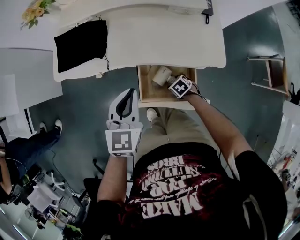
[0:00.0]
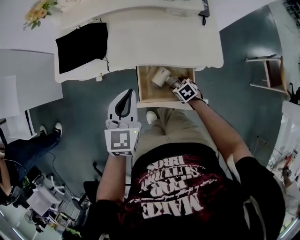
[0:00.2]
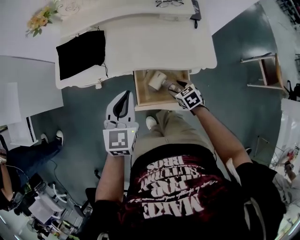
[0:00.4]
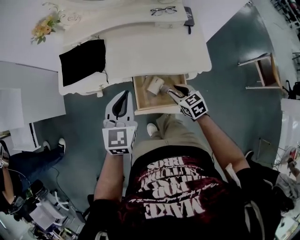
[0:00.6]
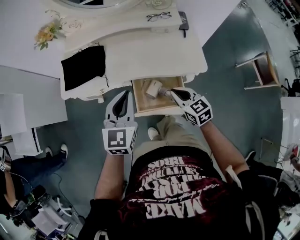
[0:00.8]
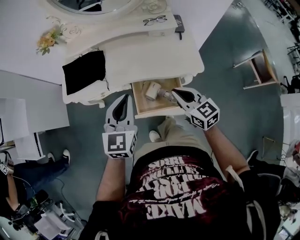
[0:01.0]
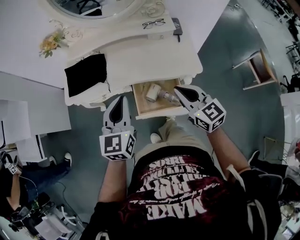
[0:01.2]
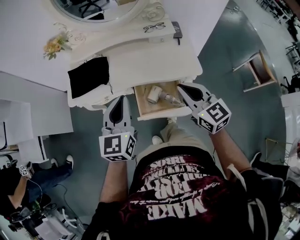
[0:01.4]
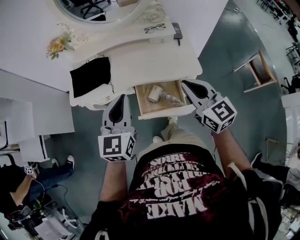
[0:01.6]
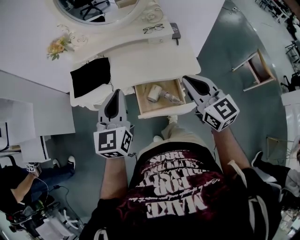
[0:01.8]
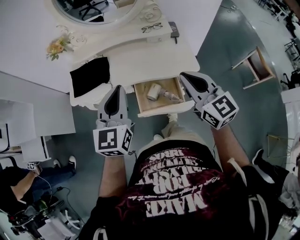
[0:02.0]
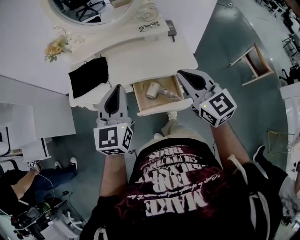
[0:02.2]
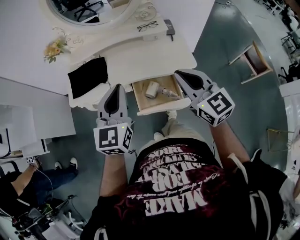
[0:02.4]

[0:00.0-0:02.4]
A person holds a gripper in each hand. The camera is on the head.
0:00.0 to 0:01.2: The right gripper goes about 40 cm upward, tips its fingers upward by roughly 60 degrees, and closes up; the left gripper is displaced upward by approximately 10 cm.
0:01.2 to 0:02.4: The two grippers go roughly 10 cm upward.

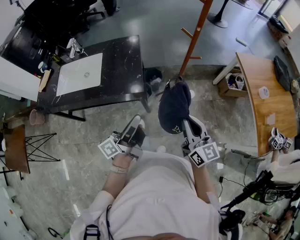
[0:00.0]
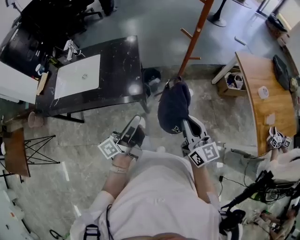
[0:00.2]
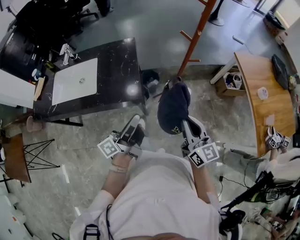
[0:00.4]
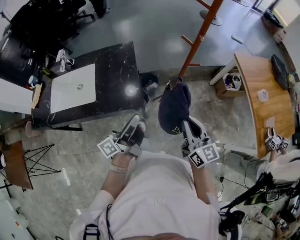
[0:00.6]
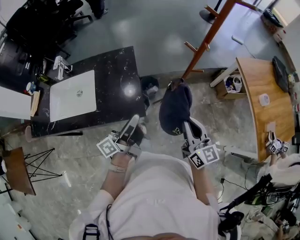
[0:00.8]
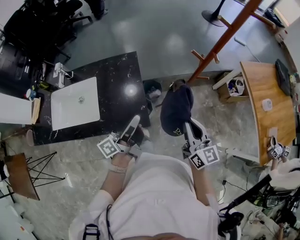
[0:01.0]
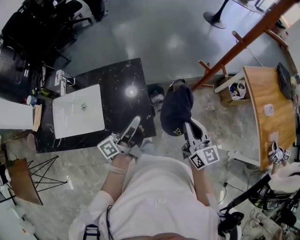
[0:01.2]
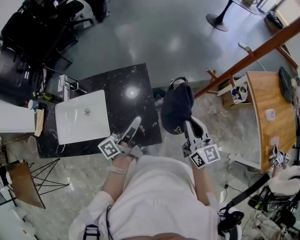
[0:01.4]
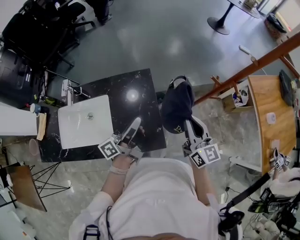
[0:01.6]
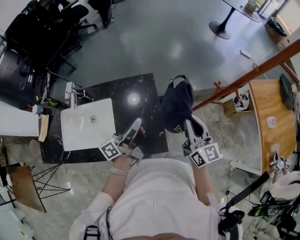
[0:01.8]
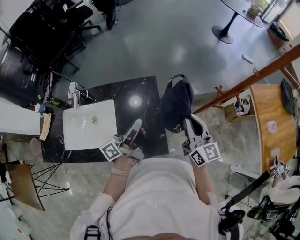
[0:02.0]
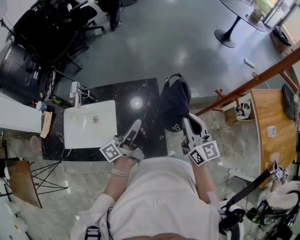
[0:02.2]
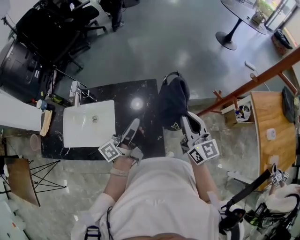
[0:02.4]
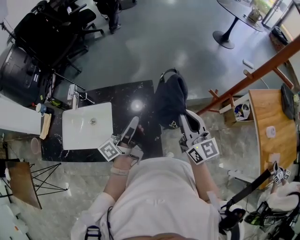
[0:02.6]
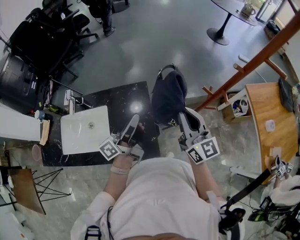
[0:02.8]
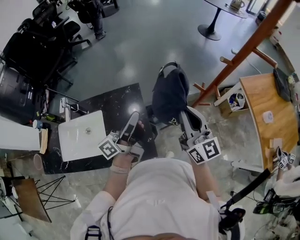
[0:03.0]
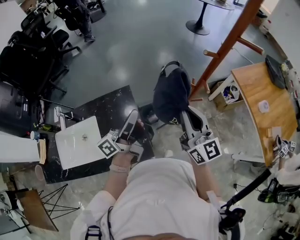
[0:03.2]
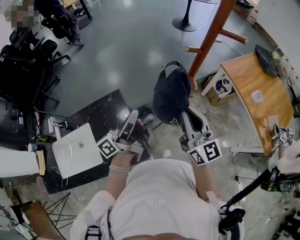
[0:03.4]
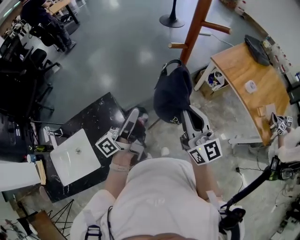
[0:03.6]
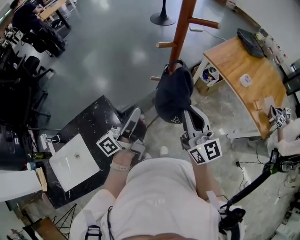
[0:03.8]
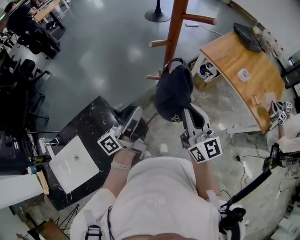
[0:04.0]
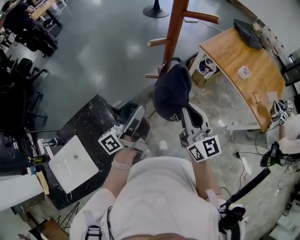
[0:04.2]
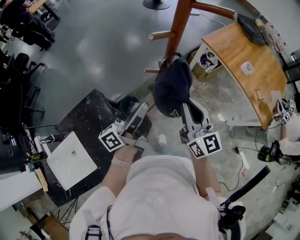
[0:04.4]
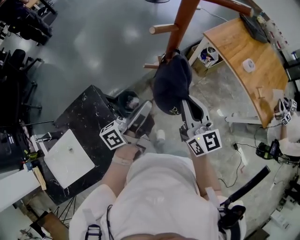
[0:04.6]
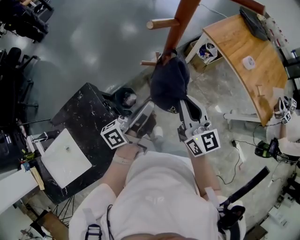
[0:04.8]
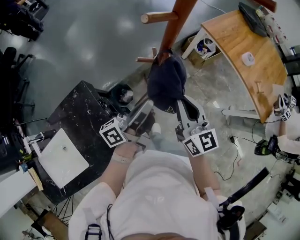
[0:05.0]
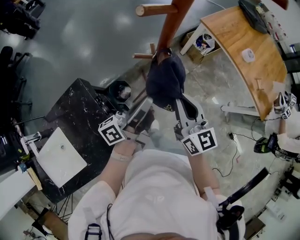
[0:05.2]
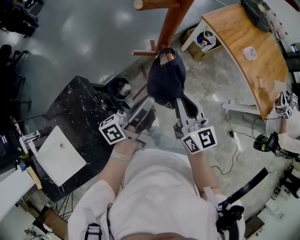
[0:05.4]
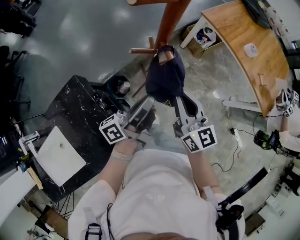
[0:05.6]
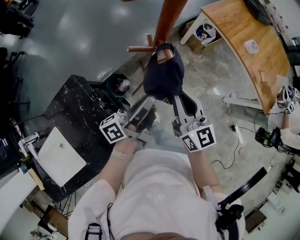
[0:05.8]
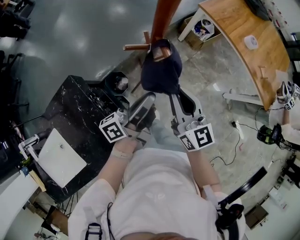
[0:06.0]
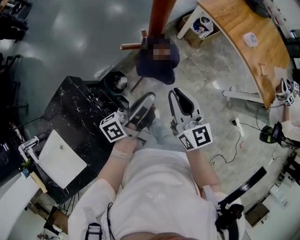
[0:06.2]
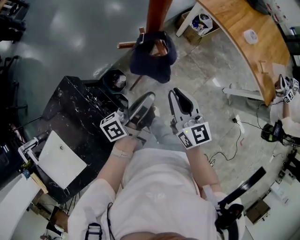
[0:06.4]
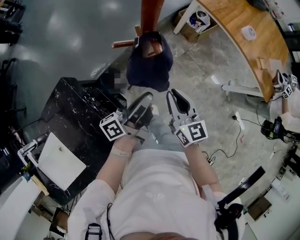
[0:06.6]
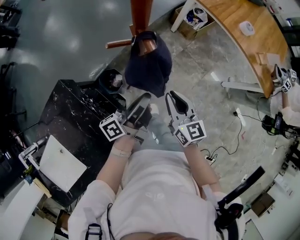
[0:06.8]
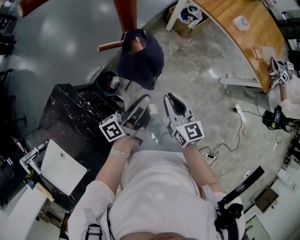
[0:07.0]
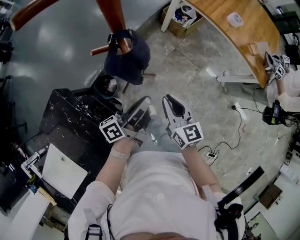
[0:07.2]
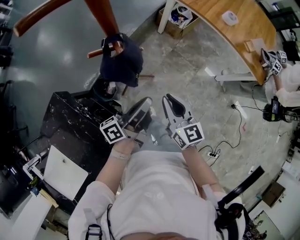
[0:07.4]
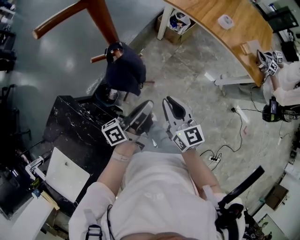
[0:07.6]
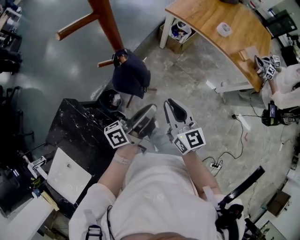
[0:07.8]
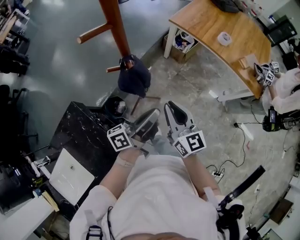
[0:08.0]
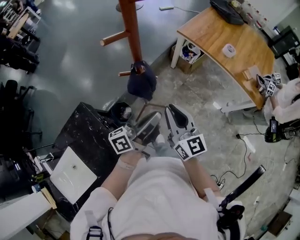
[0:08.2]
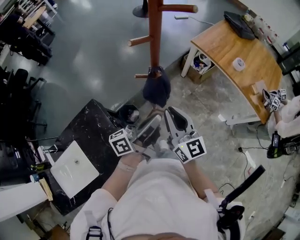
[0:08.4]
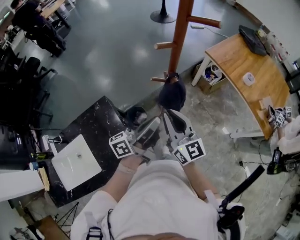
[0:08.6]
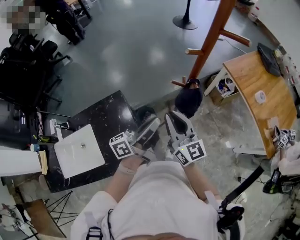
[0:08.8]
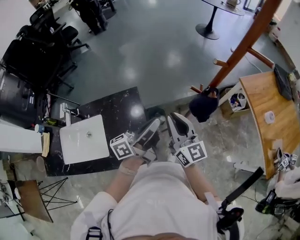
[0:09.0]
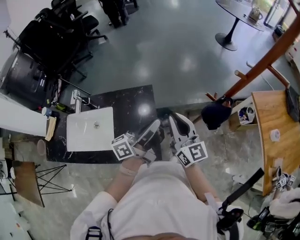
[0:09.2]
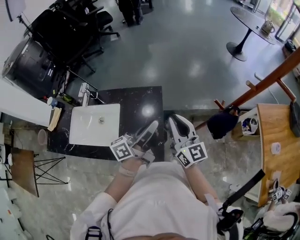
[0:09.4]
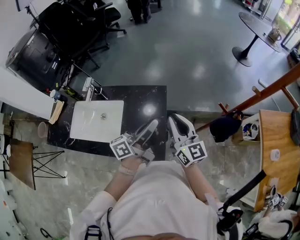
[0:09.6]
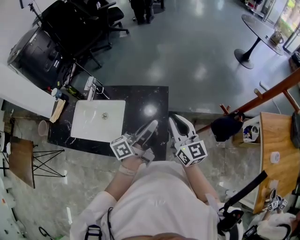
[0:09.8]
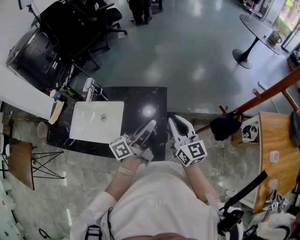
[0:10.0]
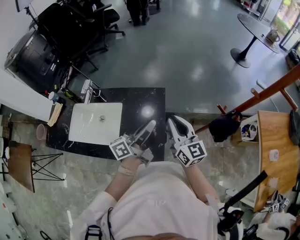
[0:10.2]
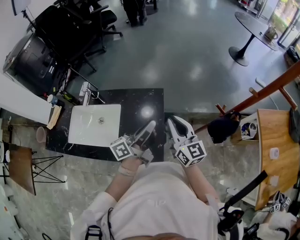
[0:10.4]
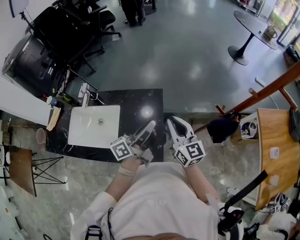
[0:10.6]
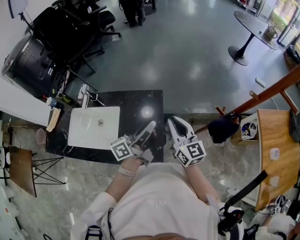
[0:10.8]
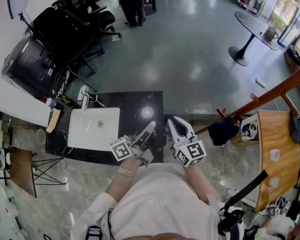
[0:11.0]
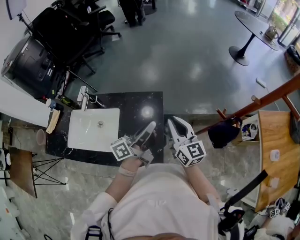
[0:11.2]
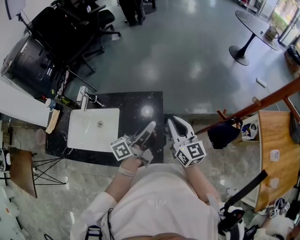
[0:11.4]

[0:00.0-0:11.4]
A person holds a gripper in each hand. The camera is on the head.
0:00.0 to 0:01.4: Both grippers move forward and to the left, approximately 35 cm.
0:01.4 to 0:02.8: The two grippers go roughly 10 cm upward and forward.
0:02.8 to 0:04.2: The left gripper shifts by approximately 25 cm, and turns by some 30 degrees. Meanwhile the right gripper moves some 20 cm, and rotates some 30 degrees.
0:04.2 to 0:05.6: The right gripper moves downward, about 15 cm; the left gripper shifts roughly 15 cm downward and to the right.
0:05.6 to 0:07.2: The two grippers go some 15 cm downward and to the right.
0:07.2 to 0:08.6: The left gripper is displaced upward by roughly 20 cm, and turns by approximately 20 degrees; the right gripper shifts some 25 cm upward and to the left, and turns by some 30 degrees.
0:08.6 to 0:10.0: The left gripper ends up approximately 25 cm from where it was, and turns by some 40 degrees, while the right gripper ends up roughly 25 cm from where it was, and rotates some 40 degrees.
0:10.0 to 0:11.4: The left gripper heads forward, covering approximately 5 cm.

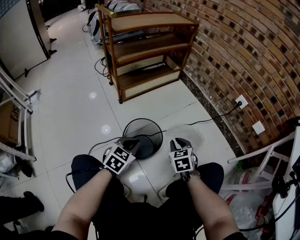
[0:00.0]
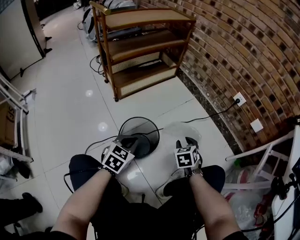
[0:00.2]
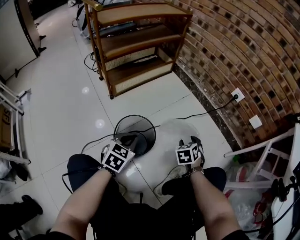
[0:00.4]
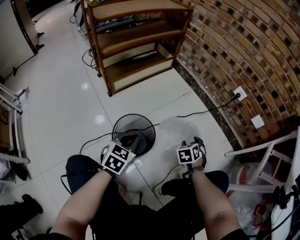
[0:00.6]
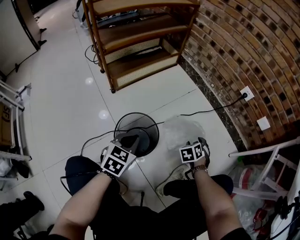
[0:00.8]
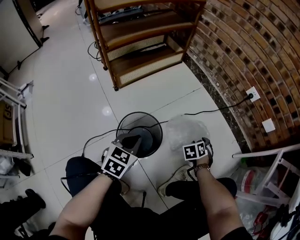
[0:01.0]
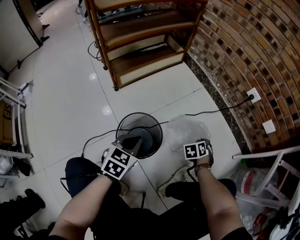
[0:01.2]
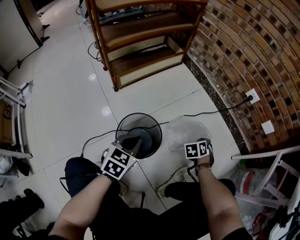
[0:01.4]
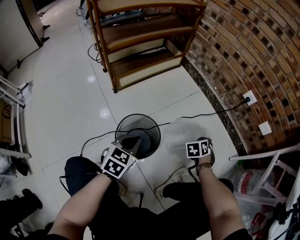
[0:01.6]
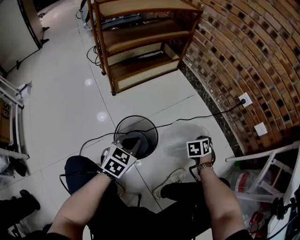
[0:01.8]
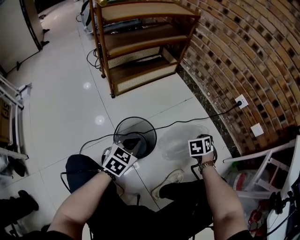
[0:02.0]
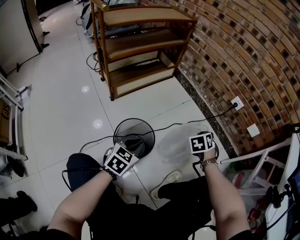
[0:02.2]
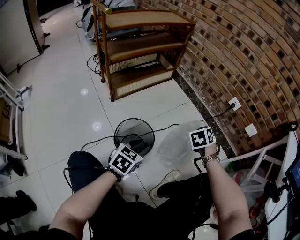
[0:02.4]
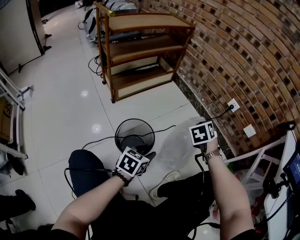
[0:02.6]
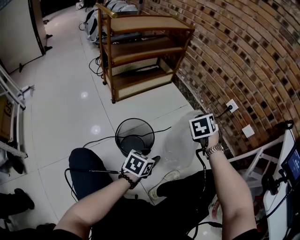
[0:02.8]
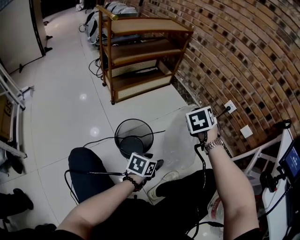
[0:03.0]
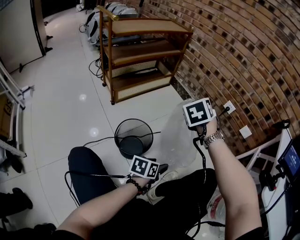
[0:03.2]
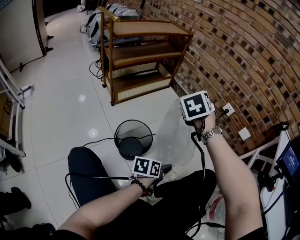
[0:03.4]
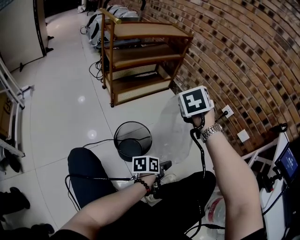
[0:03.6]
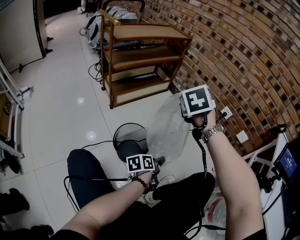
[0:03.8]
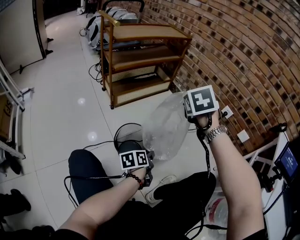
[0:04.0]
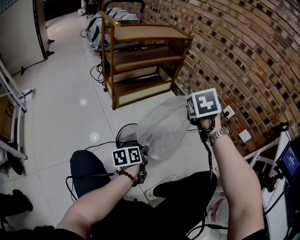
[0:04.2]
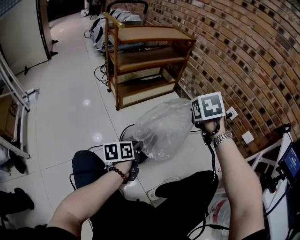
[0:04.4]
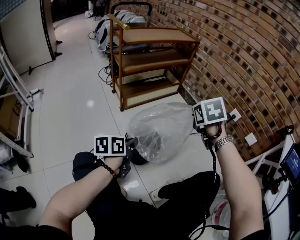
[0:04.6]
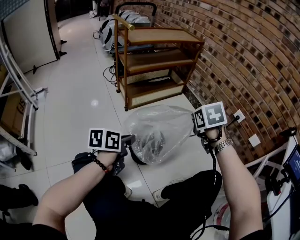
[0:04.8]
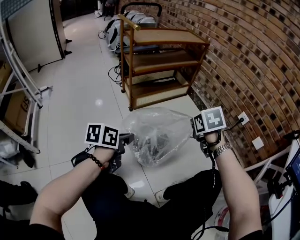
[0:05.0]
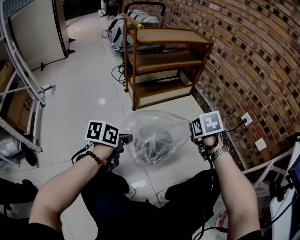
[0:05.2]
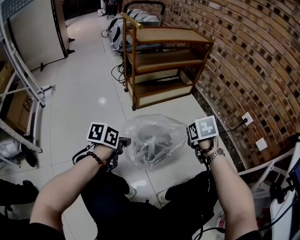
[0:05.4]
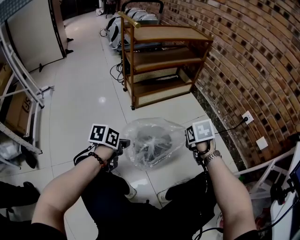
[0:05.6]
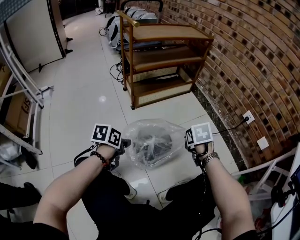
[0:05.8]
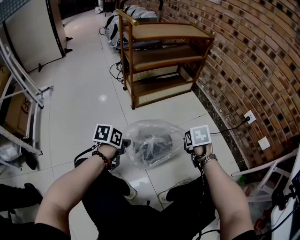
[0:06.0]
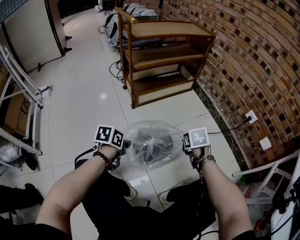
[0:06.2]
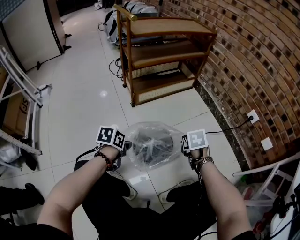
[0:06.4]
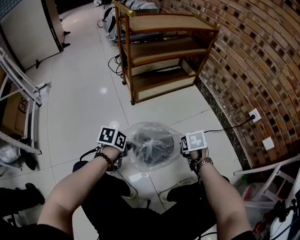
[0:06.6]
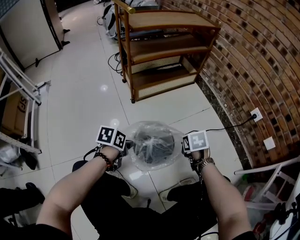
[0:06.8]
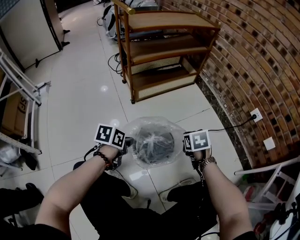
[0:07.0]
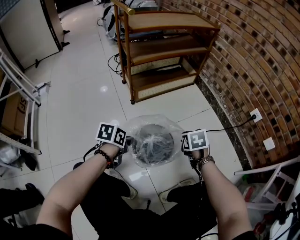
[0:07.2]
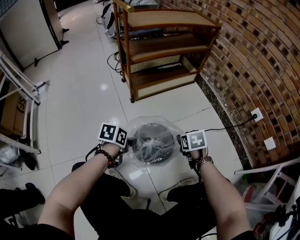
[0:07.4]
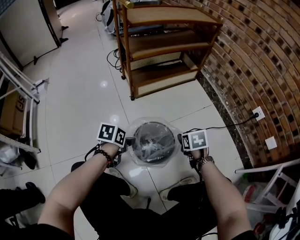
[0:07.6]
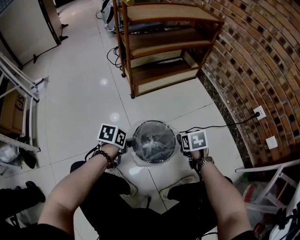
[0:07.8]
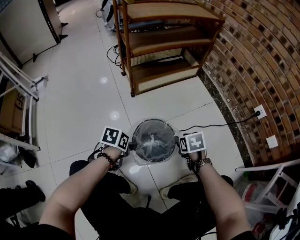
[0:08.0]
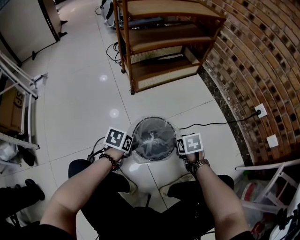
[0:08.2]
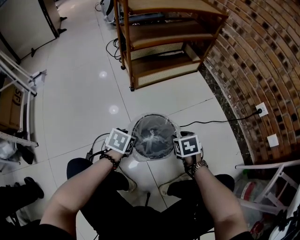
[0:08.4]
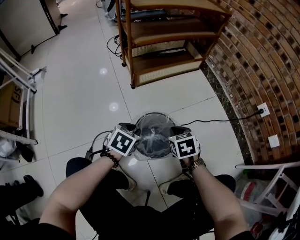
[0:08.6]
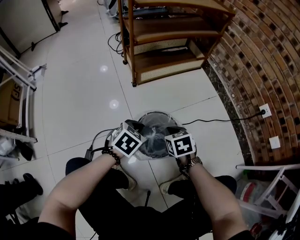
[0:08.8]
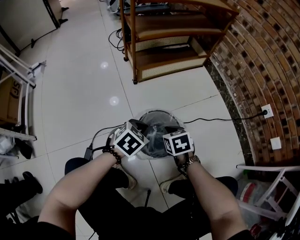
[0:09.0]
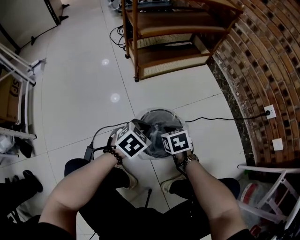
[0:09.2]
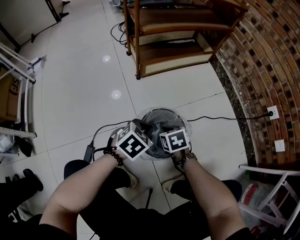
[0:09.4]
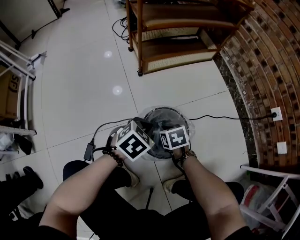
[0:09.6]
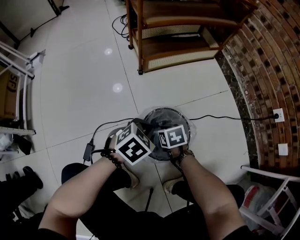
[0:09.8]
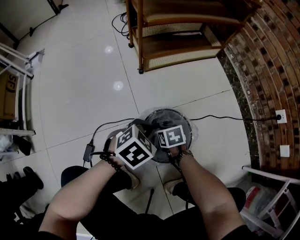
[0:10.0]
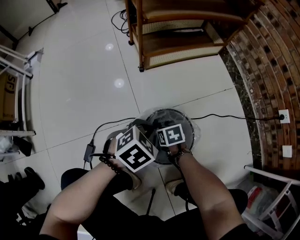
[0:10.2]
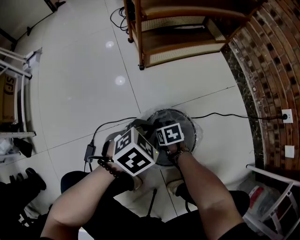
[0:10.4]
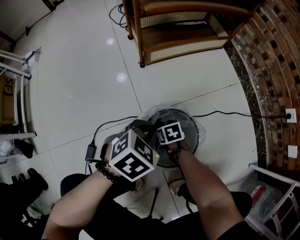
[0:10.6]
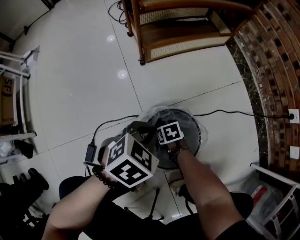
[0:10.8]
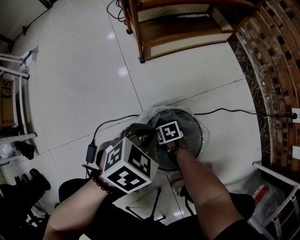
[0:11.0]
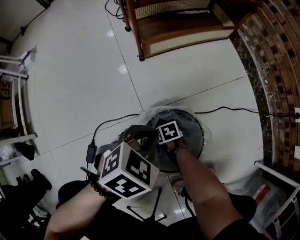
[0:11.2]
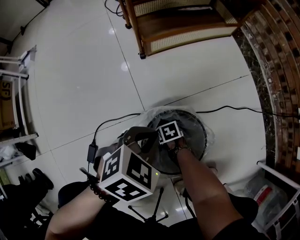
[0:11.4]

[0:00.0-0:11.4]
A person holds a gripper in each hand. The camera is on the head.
0:00.0 to 0:01.4: The right gripper changes place by roughly 20 cm, swivels about 40 degrees, and opens, then closes again.
0:01.4 to 0:02.8: The left gripper is displaced to the right by approximately 15 cm, rotates about 20 degrees, and opens its fingers. Meanwhile the right gripper heads upward, covering some 25 cm.
0:02.8 to 0:04.2: The left gripper travels to the left by roughly 10 cm, swivels about 40 degrees, and closes up. The right gripper is displaced upward and to the left by some 15 cm.
0:04.2 to 0:05.6: The right gripper is displaced downward by about 15 cm, and changes its angle by roughly 20 degrees. Meanwhile the left gripper shifts approximately 15 cm to the left, and rotates about 20 degrees.
0:05.6 to 0:07.2: The right gripper heads downward, covering some 10 cm; the left gripper is displaced downward and forward by some 10 cm.
0:07.2 to 0:08.6: The left gripper changes its angle by some 30 degrees, and opens, then closes once more, while the right gripper travels to the left by approximately 5 cm, and opens, then closes once more.
0:08.6 to 0:10.0: The right gripper is displaced downward and to the left by about 20 cm, and turns by some 20 degrees.
0:10.0 to 0:11.4: The right gripper goes approximately 15 cm downward.
